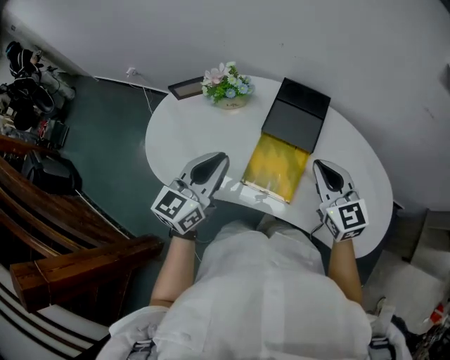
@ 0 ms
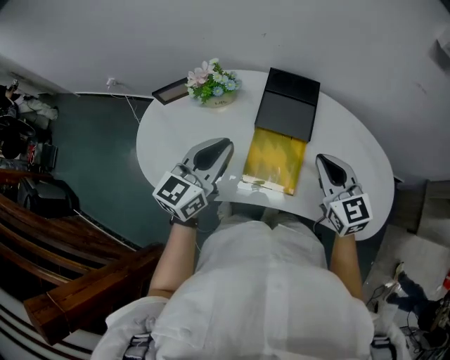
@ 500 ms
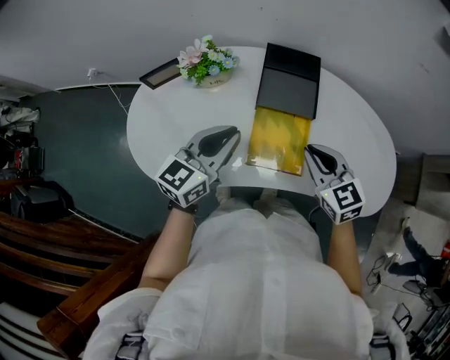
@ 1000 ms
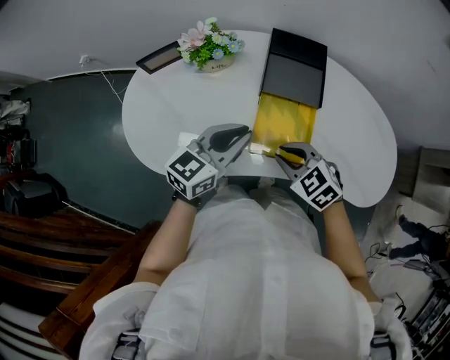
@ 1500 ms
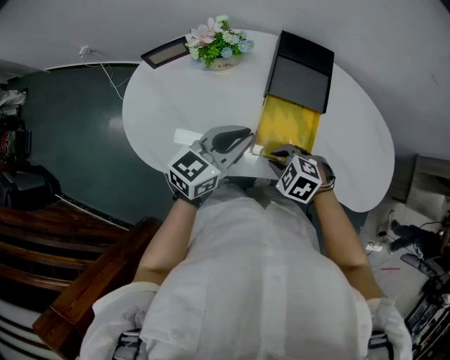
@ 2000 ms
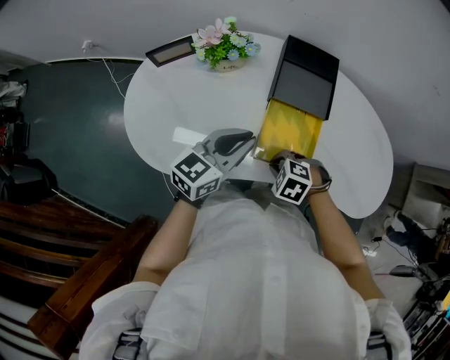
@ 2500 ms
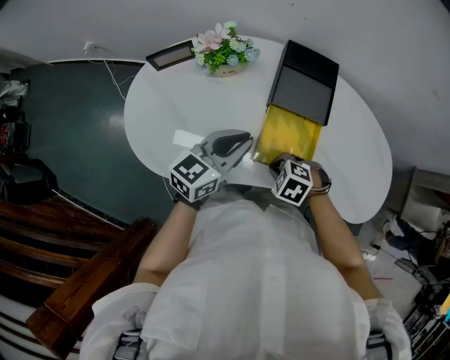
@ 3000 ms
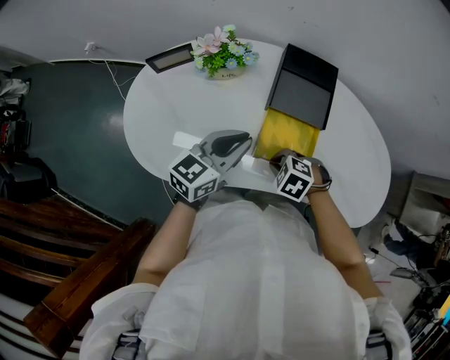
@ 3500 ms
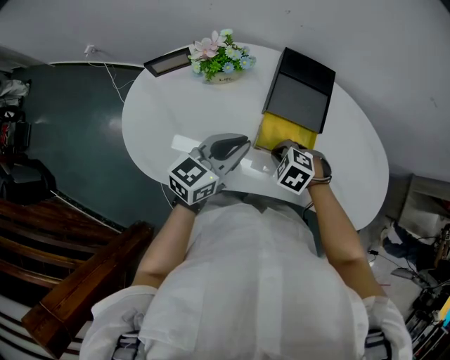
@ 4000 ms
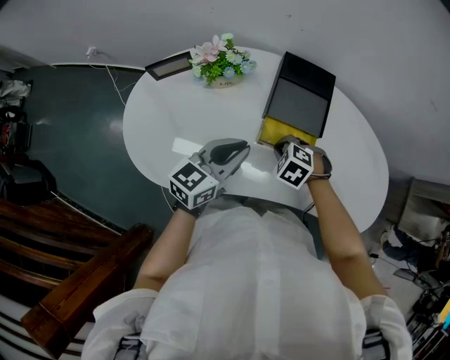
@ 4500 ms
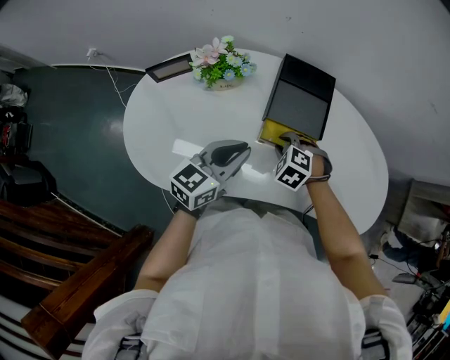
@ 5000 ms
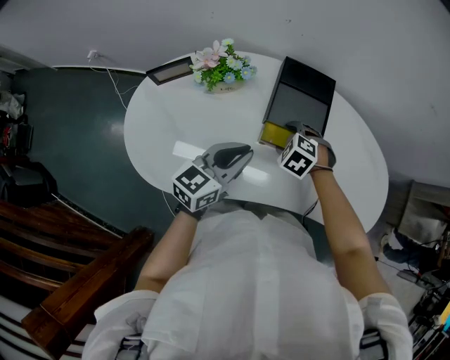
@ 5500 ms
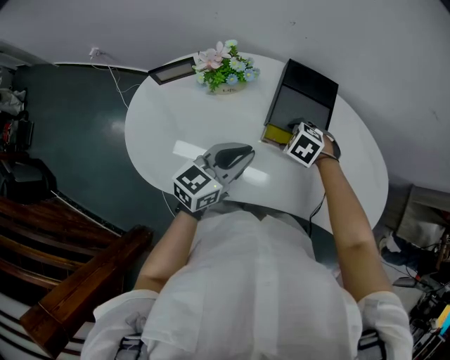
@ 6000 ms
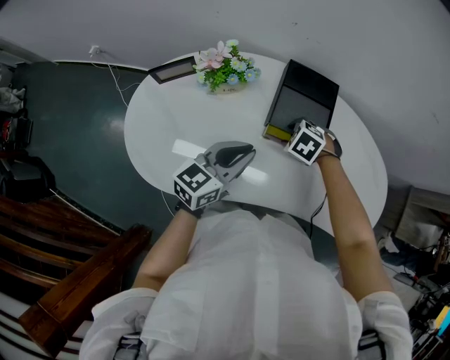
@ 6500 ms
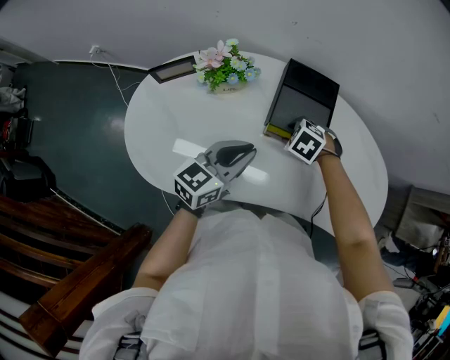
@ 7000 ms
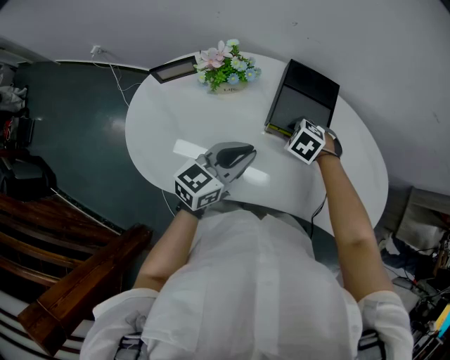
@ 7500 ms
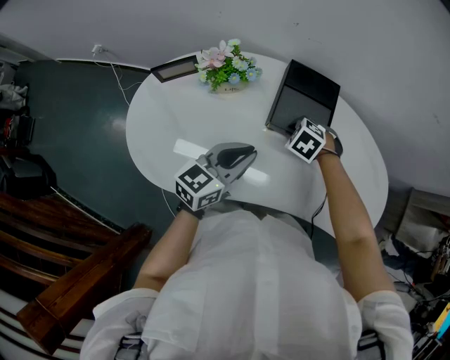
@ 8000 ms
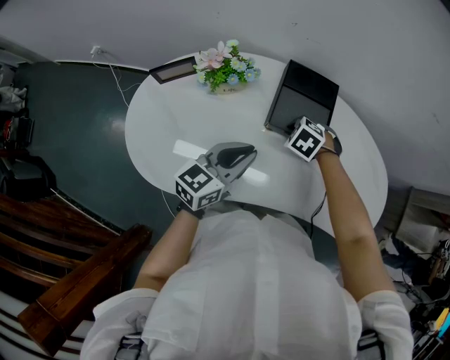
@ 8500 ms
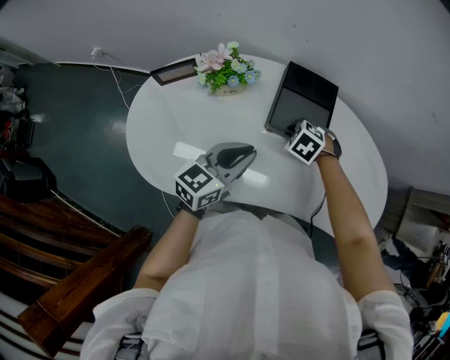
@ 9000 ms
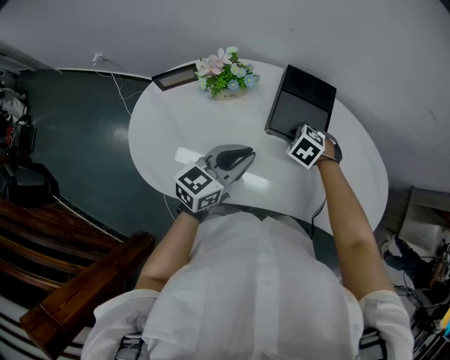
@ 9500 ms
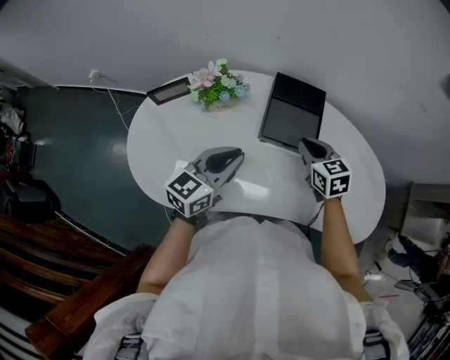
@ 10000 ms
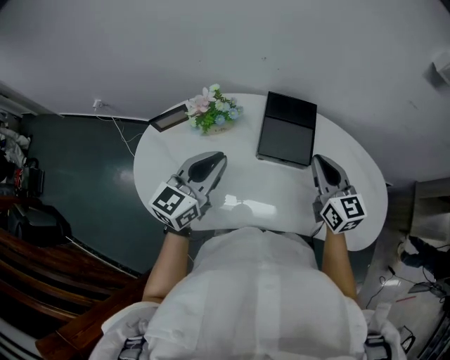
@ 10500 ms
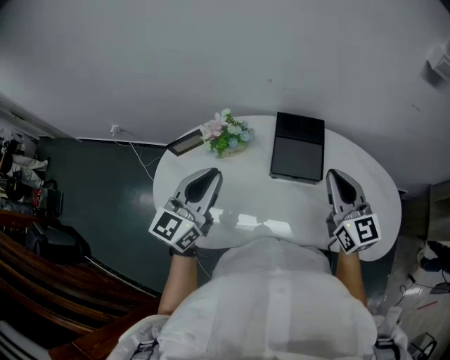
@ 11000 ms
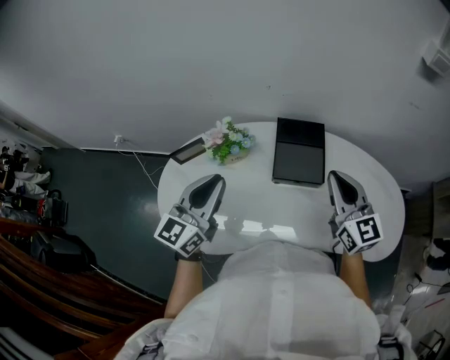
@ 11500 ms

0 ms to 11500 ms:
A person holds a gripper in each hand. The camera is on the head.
0 ms to 2000 ms: The right gripper travels downward, to the left and backward by approximately 25 cm, and tilts its fingers approximately 50 degrees downward. Meanwhile the left gripper is displaced downward by about 10 cm, and turns by some 30 degrees.
2000 ms to 4000 ms: The right gripper shifts by roughly 10 cm.
4000 ms to 6000 ms: The right gripper changes place by some 10 cm, and opens up.
6000 ms to 7500 ms: The right gripper closes.
7500 ms to 9500 ms: Neither gripper changes place.
9500 ms to 11500 ms: The right gripper moves upward, about 25 cm, and tips its fingers upward by approximately 70 degrees. Meanwhile the left gripper heads upward and to the left, covering approximately 15 cm, and turns by roughly 20 degrees.

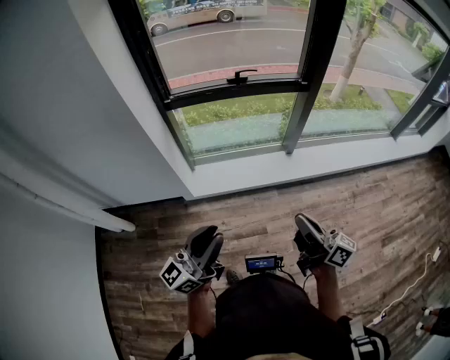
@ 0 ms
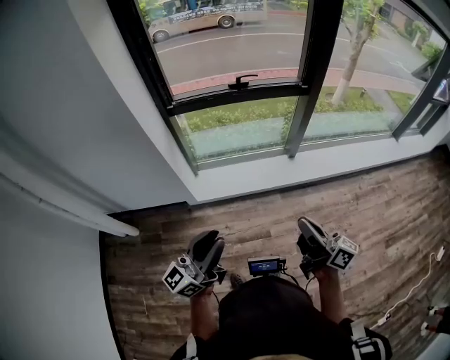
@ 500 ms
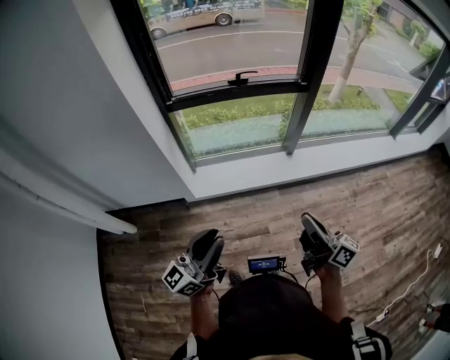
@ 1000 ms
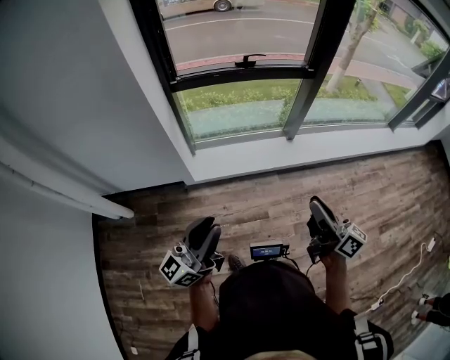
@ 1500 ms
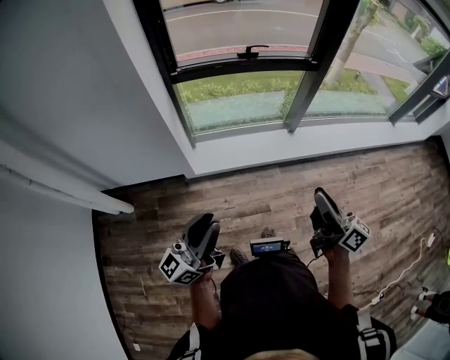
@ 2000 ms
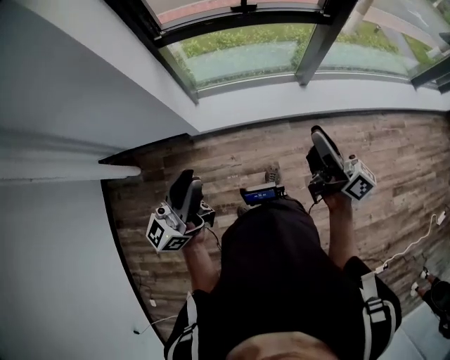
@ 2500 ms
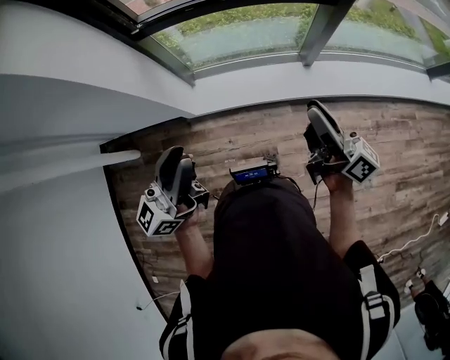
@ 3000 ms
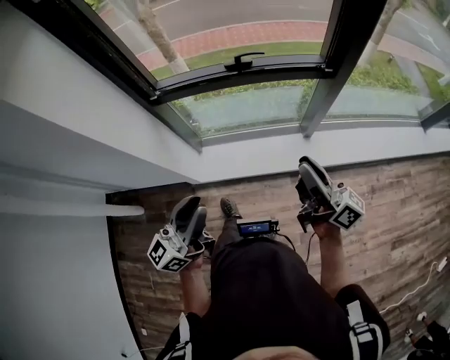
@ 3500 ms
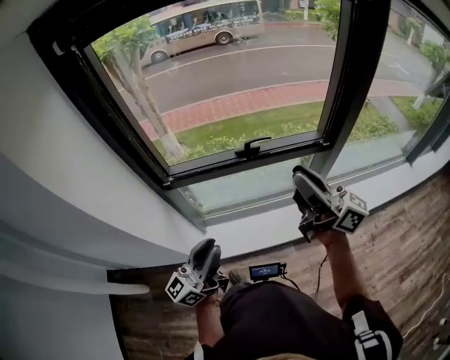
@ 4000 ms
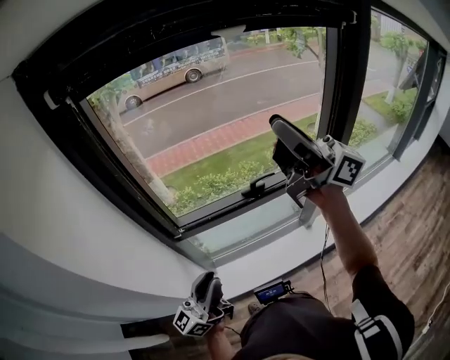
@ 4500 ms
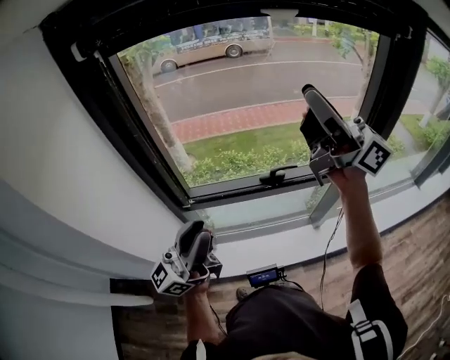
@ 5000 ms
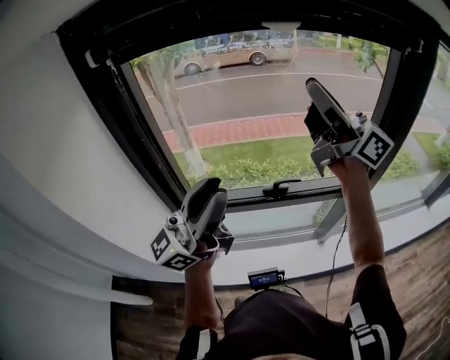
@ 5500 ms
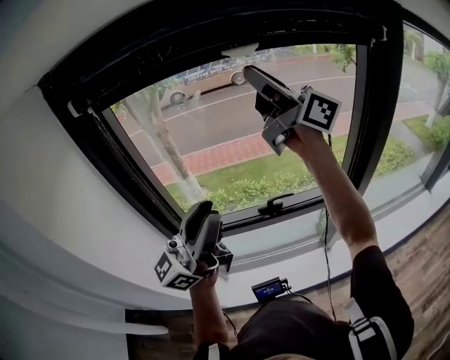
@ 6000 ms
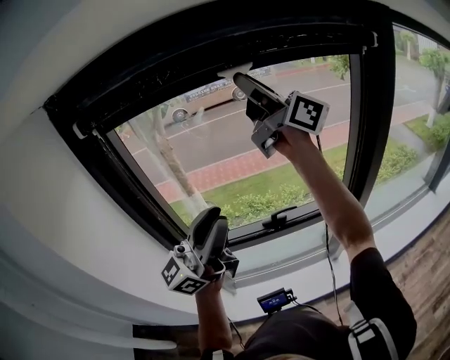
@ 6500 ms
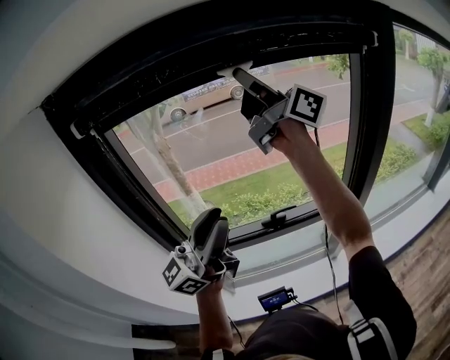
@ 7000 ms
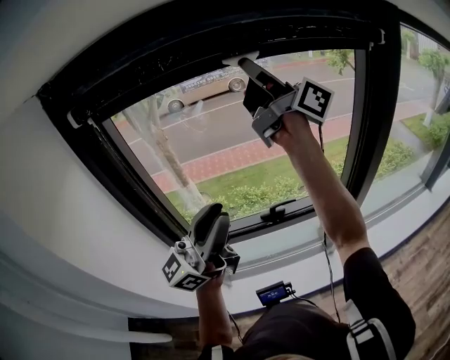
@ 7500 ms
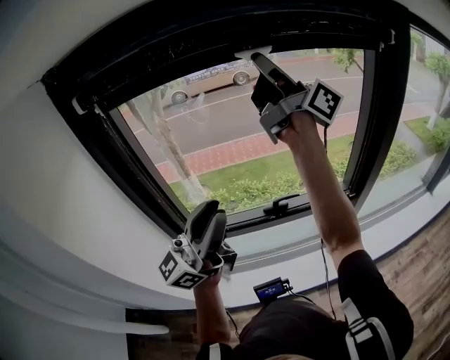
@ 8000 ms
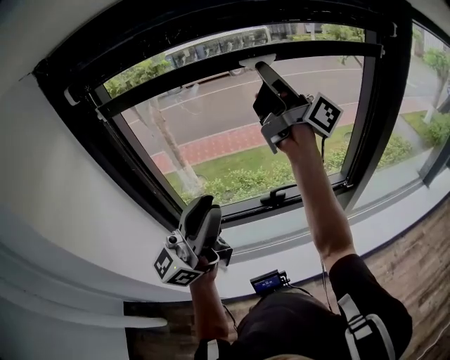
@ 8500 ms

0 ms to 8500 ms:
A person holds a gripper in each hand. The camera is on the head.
0 ms to 2000 ms: The left gripper moves to the left, roughly 10 cm.
2000 ms to 4000 ms: Both grippers move forward, approximately 40 cm. The right gripper turns by approximately 20 degrees.
4000 ms to 6500 ms: The grippers both shift upward and forward by approximately 35 cm. The left gripper swivels some 30 degrees. Meanwhile the right gripper swivels roughly 20 degrees.
6500 ms to 8500 ms: The right gripper is displaced downward by about 5 cm, rotates roughly 20 degrees, and closes.

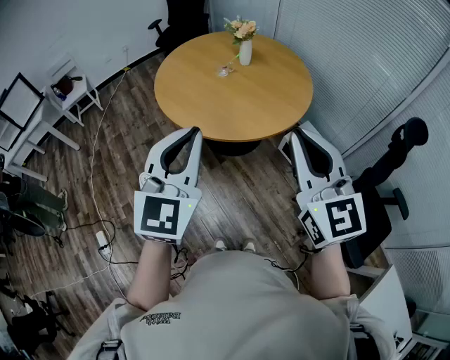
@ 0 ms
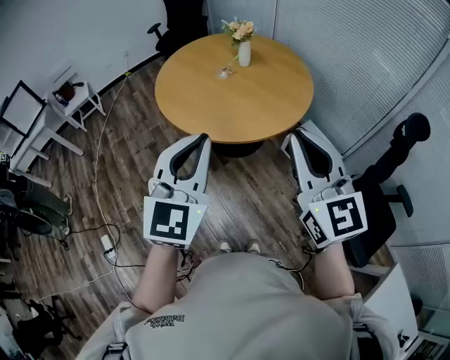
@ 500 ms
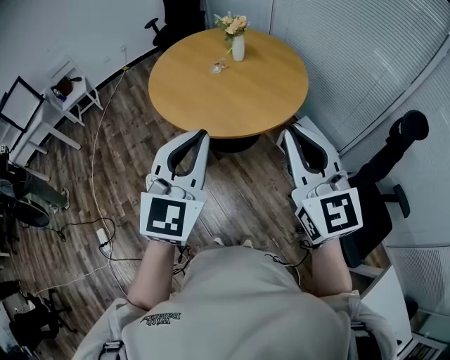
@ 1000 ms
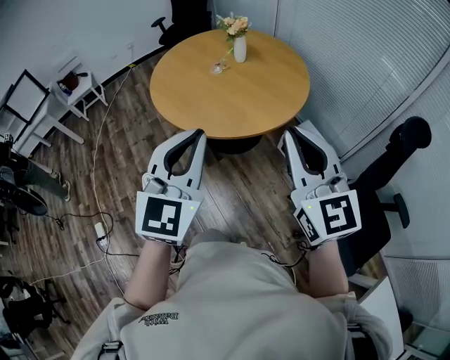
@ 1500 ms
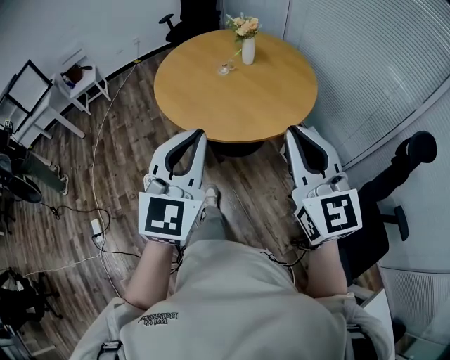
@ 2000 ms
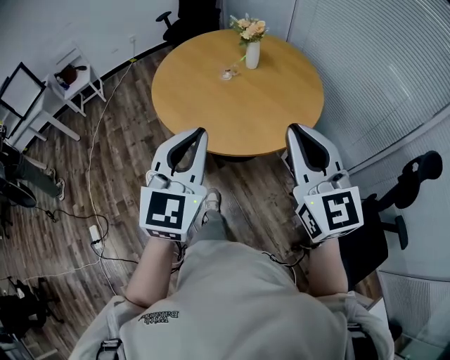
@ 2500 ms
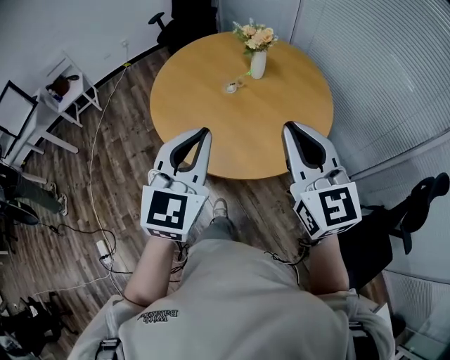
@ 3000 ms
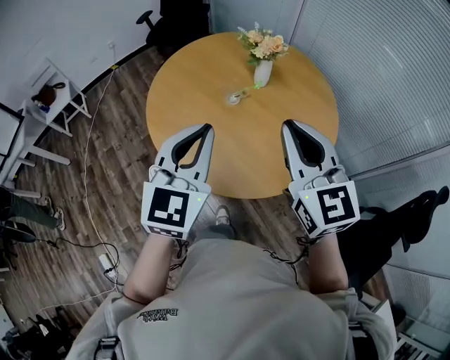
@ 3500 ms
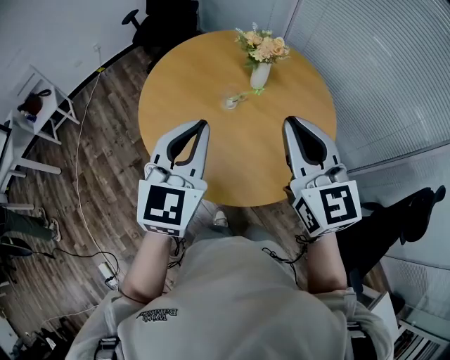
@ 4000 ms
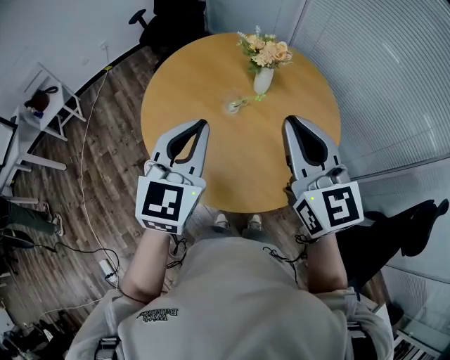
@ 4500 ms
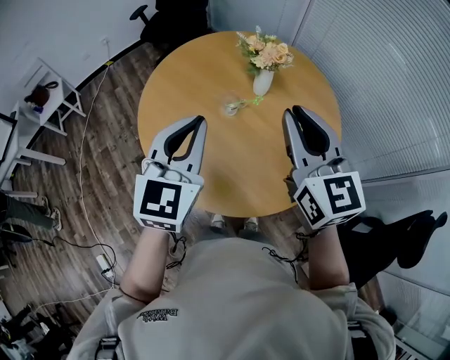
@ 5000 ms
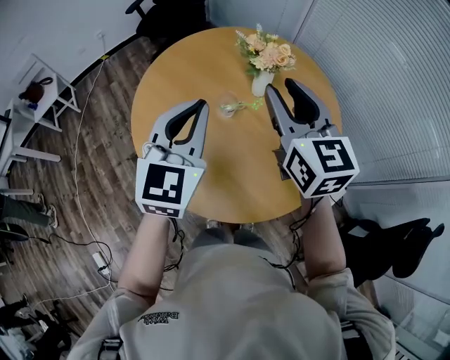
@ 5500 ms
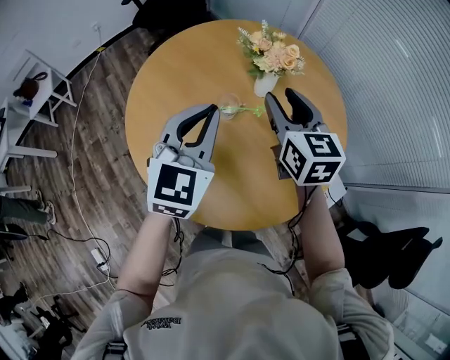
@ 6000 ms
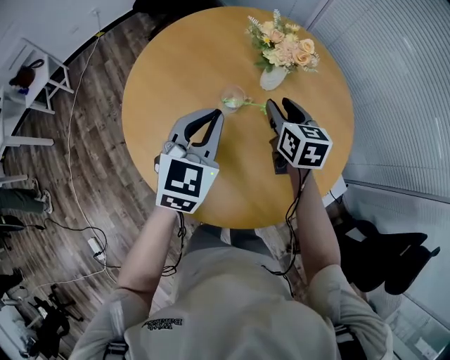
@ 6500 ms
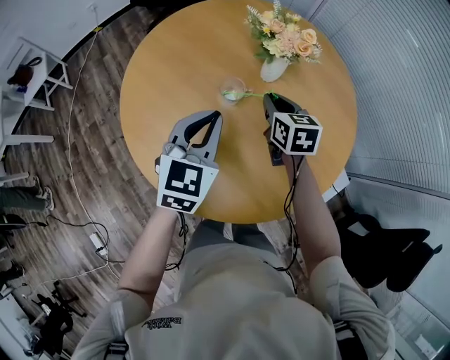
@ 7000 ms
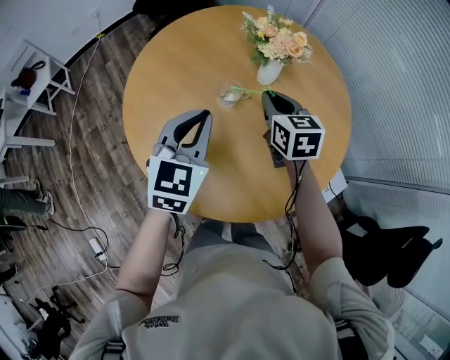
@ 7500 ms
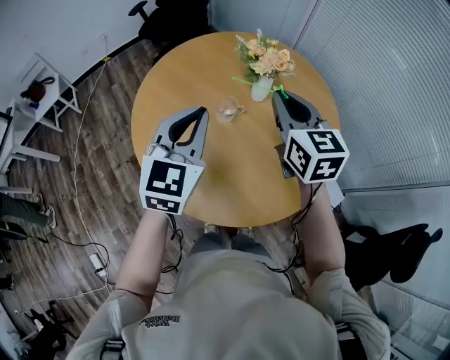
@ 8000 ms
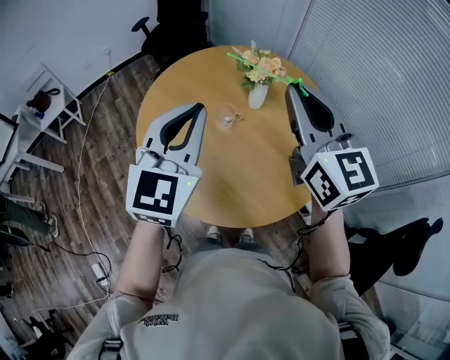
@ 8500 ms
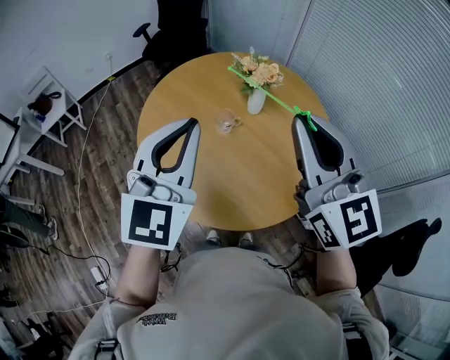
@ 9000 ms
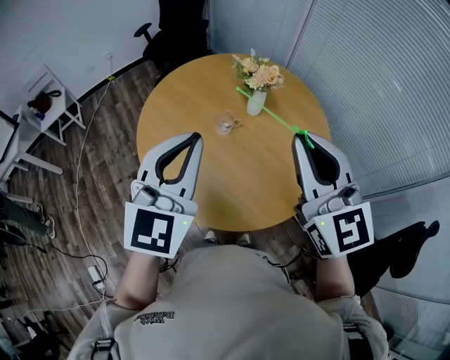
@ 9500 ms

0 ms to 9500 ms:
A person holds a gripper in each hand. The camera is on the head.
0 ms to 2000 ms: The grippers both shift to the right by about 5 cm.
2000 ms to 4000 ms: The two grippers travel together, forward and to the left, about 40 cm.
4000 ms to 5500 ms: The grippers both shift forward by roughly 15 cm. The right gripper opens its fingers.
5500 ms to 7500 ms: The right gripper shifts about 20 cm downward, rotates about 20 degrees, and closes; the left gripper moves downward, approximately 10 cm.
7500 ms to 9500 ms: The left gripper heads upward and backward, covering roughly 25 cm, and changes its angle by roughly 20 degrees. The right gripper moves upward and backward, some 35 cm, and tips its fingers upward by about 30 degrees.
